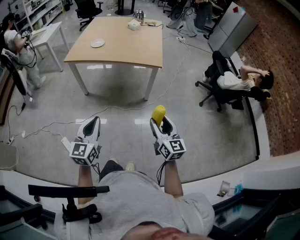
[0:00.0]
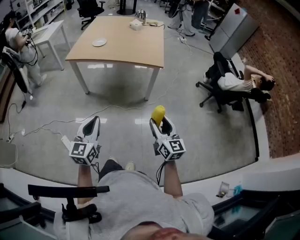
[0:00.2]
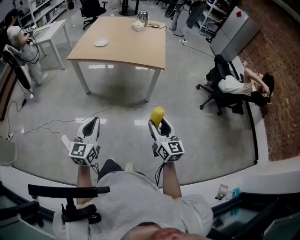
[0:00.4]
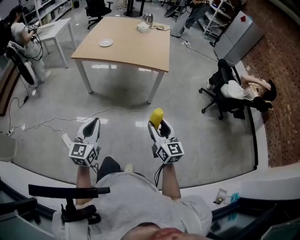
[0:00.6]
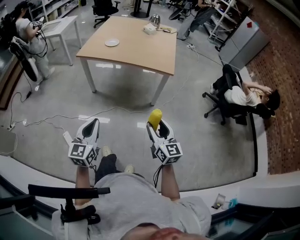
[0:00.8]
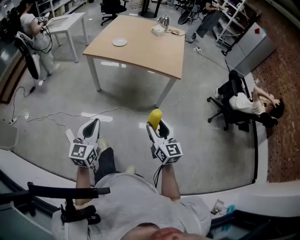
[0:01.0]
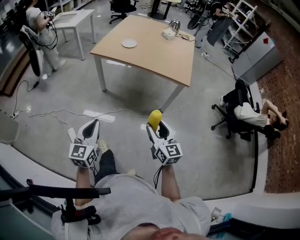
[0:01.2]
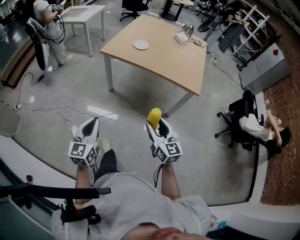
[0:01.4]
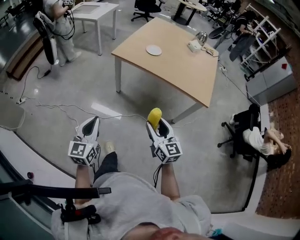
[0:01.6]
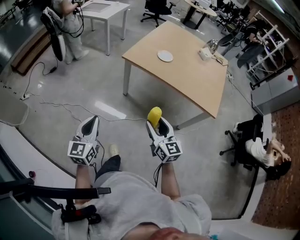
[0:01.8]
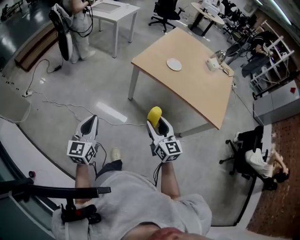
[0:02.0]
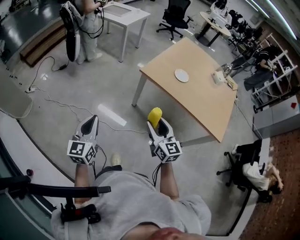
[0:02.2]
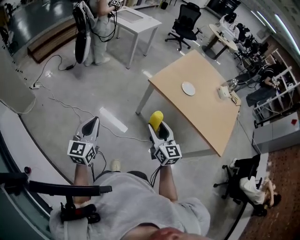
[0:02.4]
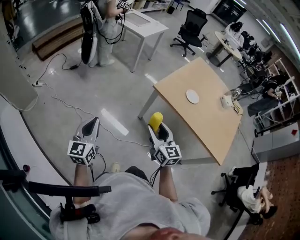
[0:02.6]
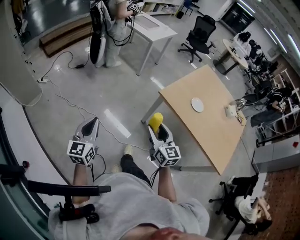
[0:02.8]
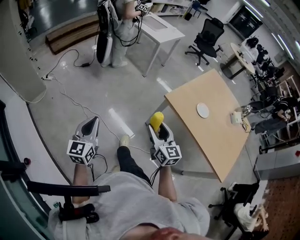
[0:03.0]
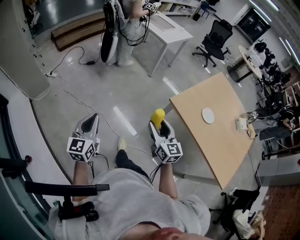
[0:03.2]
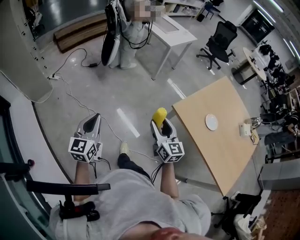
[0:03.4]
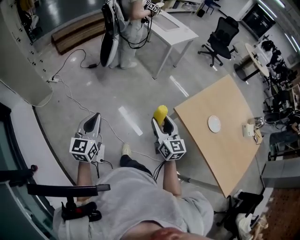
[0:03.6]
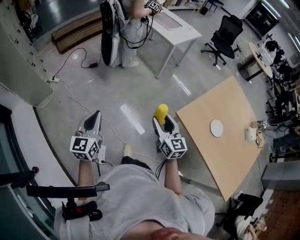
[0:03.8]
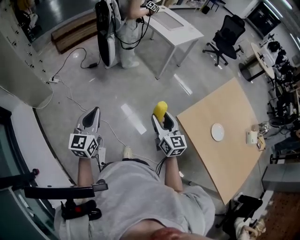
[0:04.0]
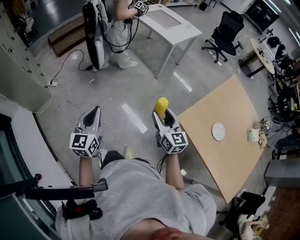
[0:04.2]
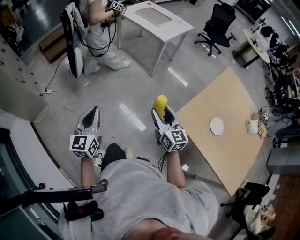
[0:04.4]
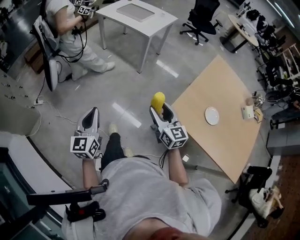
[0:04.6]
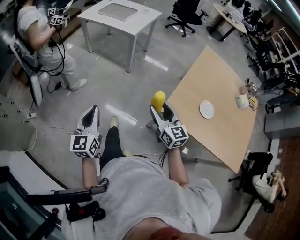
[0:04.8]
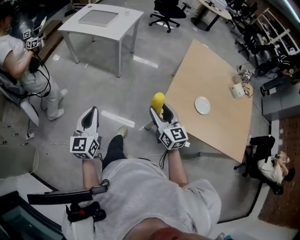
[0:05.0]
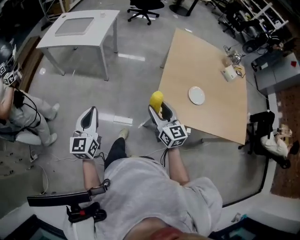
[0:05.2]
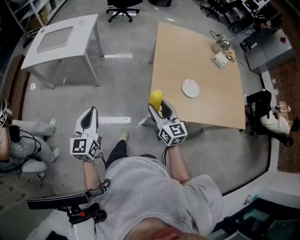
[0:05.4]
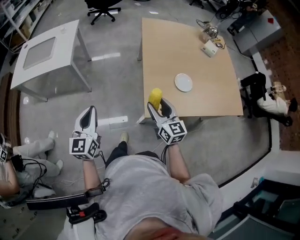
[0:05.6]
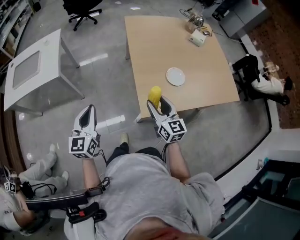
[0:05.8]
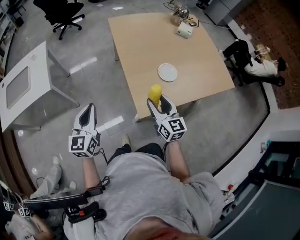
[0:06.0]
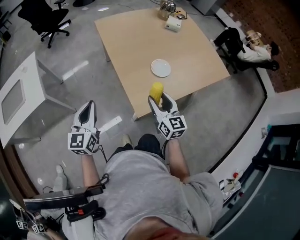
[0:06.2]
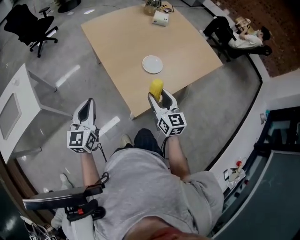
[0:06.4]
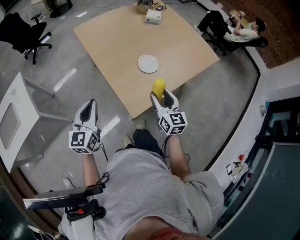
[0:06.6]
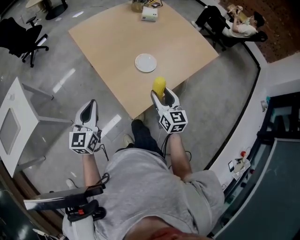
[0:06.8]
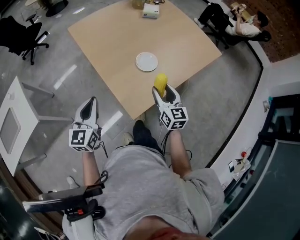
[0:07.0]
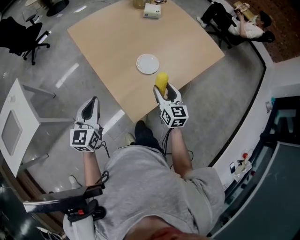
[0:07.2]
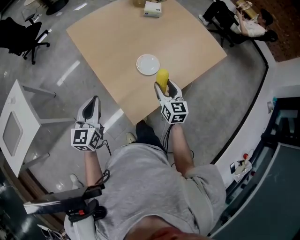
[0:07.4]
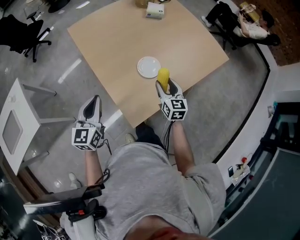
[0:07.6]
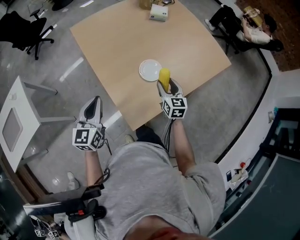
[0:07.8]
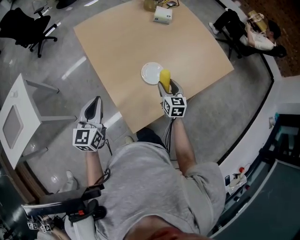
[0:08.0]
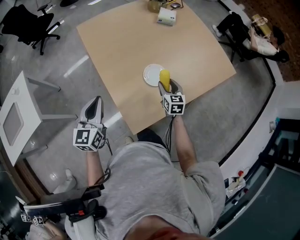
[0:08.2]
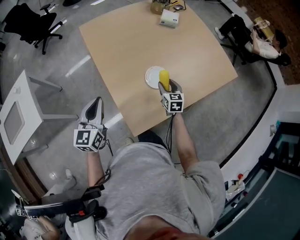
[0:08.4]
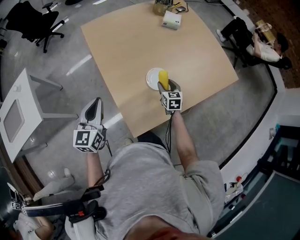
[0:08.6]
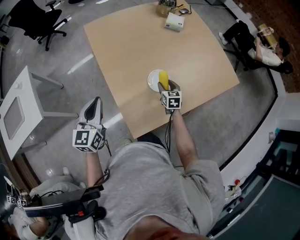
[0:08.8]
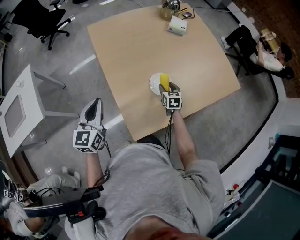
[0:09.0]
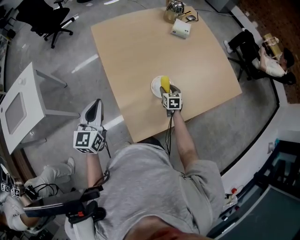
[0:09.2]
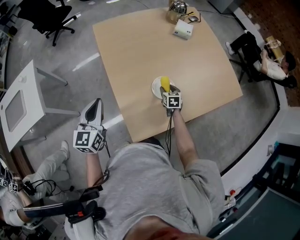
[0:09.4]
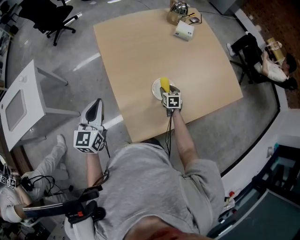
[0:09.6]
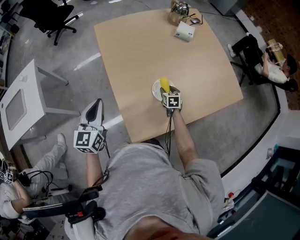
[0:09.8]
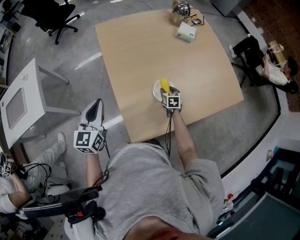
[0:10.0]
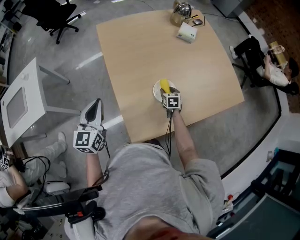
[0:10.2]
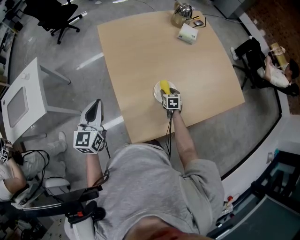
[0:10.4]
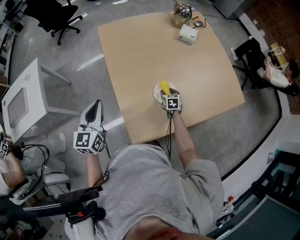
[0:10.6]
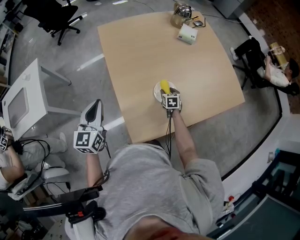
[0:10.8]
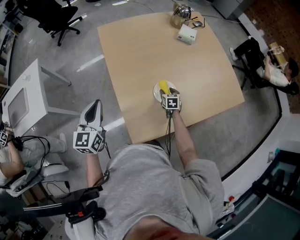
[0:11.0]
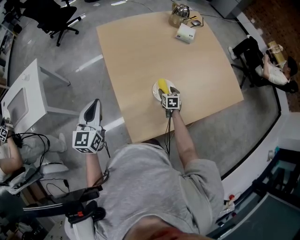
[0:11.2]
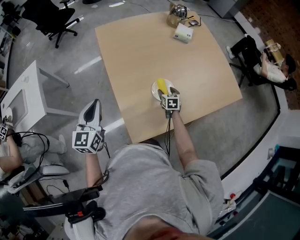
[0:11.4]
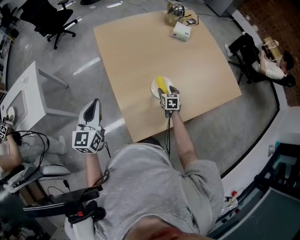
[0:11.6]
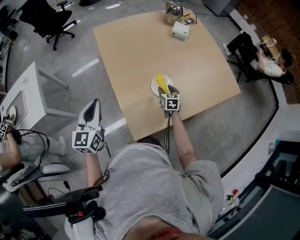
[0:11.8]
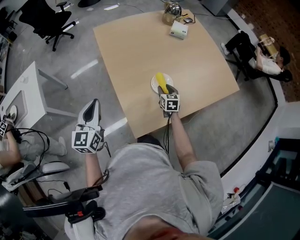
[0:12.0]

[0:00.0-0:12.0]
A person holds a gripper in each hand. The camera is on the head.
0:00.0 to 0:01.6: Both grippers move to the left and forward, some 30 cm. The right gripper rotates approximately 20 degrees. Meanwhile the left gripper swivels some 20 degrees.
0:01.6 to 0:03.0: The right gripper travels forward and to the left by some 40 cm, and swivels approximately 20 degrees. Meanwhile the left gripper shifts about 35 cm to the left and forward, and rotates roughly 30 degrees.
0:03.0 to 0:04.4: Both grippers travel together forward, approximately 30 cm.
0:04.4 to 0:06.0: The left gripper shifts by roughly 50 cm, and turns by roughly 70 degrees, while the right gripper shifts by roughly 30 cm, and turns by about 60 degrees.
0:06.0 to 0:07.6: The left gripper shifts about 25 cm forward and to the right. The right gripper travels forward, to the right and downward by some 25 cm, and rotates about 30 degrees.
0:07.6 to 0:09.0: The right gripper travels downward and forward by some 20 cm, and turns by approximately 20 degrees.
0:09.0 to 0:10.4: The right gripper travels downward by some 5 cm.
0:10.4 to 0:12.0: The right gripper shifts about 10 cm upward and backward. The left gripper moves backward, some 5 cm.

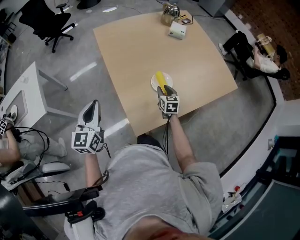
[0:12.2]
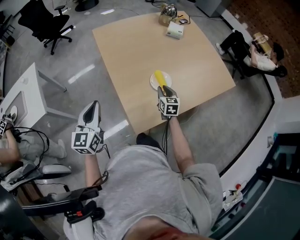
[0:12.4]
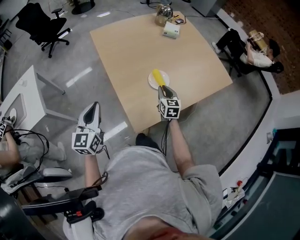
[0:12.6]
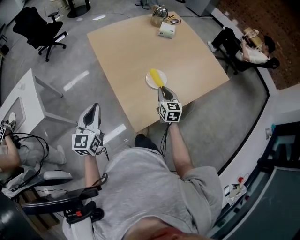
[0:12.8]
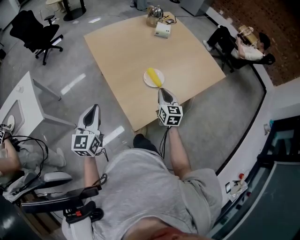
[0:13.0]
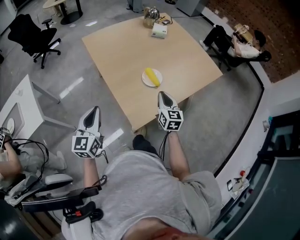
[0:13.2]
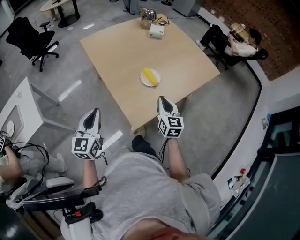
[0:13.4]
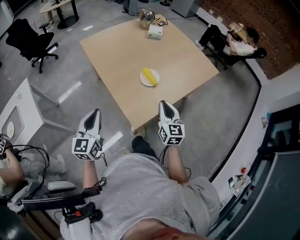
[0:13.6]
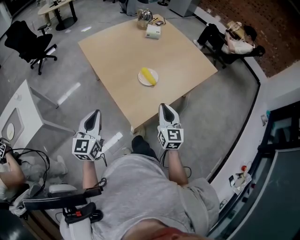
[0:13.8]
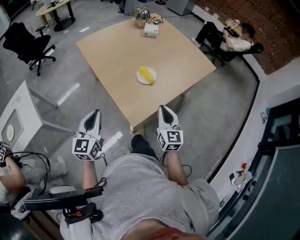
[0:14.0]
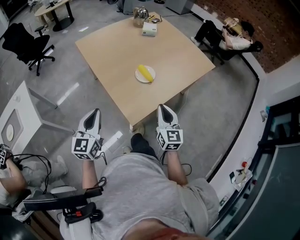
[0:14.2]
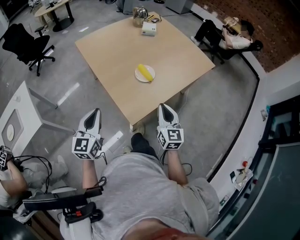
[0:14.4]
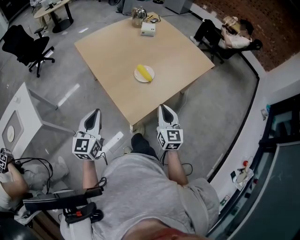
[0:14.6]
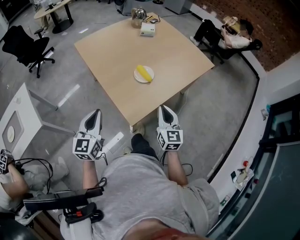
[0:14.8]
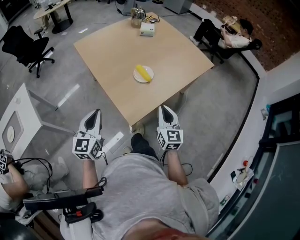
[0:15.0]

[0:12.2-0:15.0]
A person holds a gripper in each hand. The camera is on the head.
0:12.2 to 0:13.6: The left gripper heads backward, covering approximately 10 cm, while the right gripper is displaced backward and upward by about 30 cm, rotates some 30 degrees, and closes.
0:13.6 to 0:15.0: There are only small adjustments of the grippers.

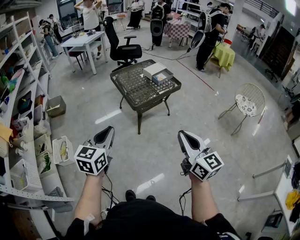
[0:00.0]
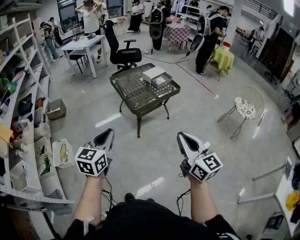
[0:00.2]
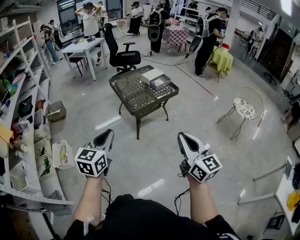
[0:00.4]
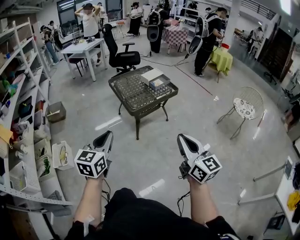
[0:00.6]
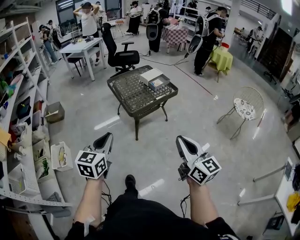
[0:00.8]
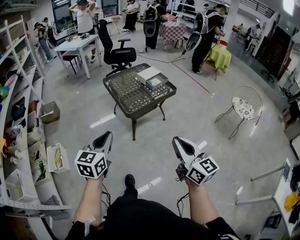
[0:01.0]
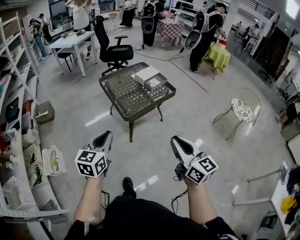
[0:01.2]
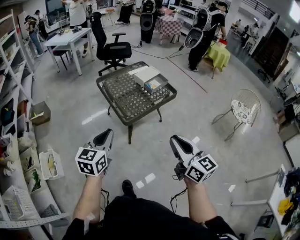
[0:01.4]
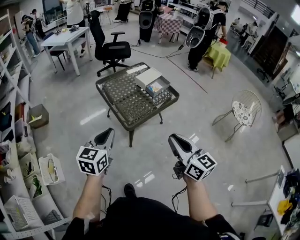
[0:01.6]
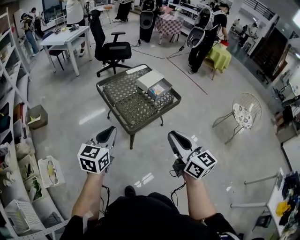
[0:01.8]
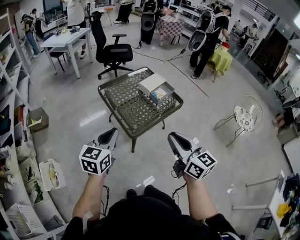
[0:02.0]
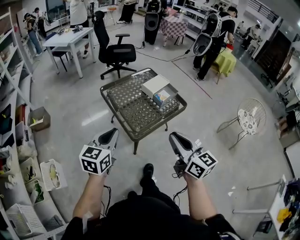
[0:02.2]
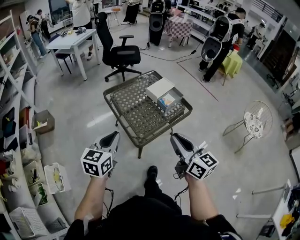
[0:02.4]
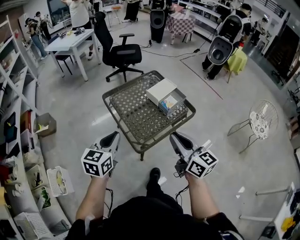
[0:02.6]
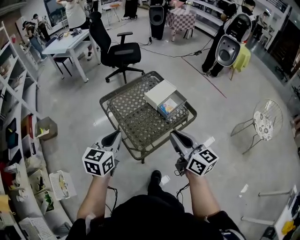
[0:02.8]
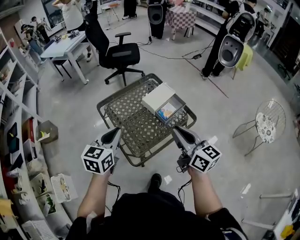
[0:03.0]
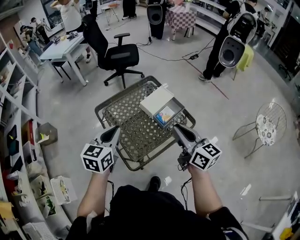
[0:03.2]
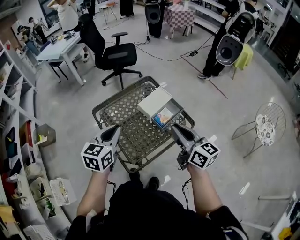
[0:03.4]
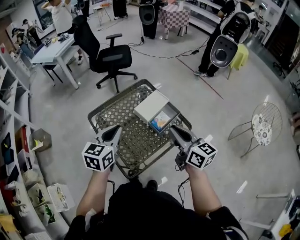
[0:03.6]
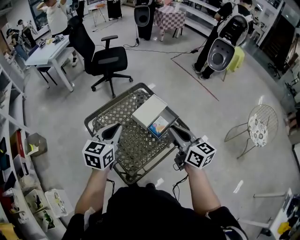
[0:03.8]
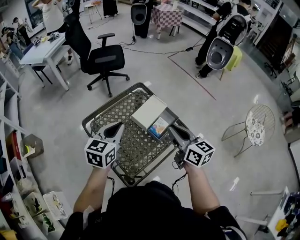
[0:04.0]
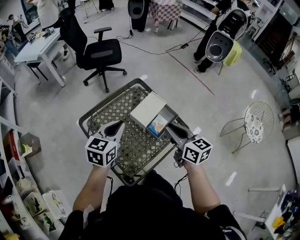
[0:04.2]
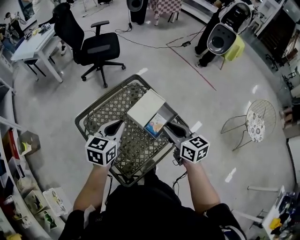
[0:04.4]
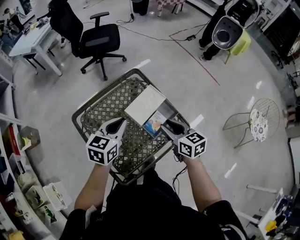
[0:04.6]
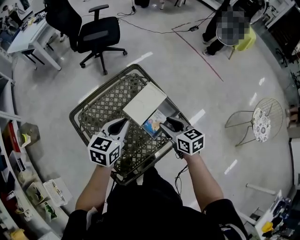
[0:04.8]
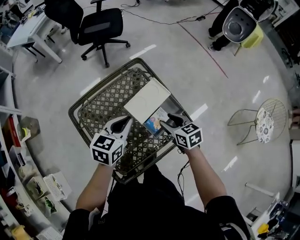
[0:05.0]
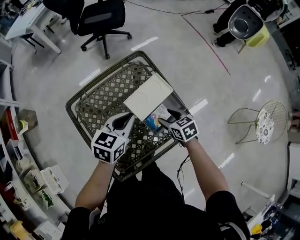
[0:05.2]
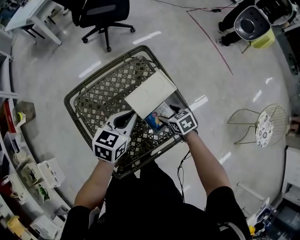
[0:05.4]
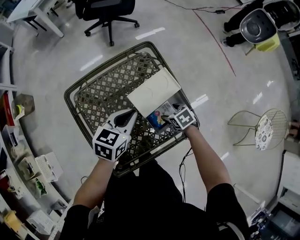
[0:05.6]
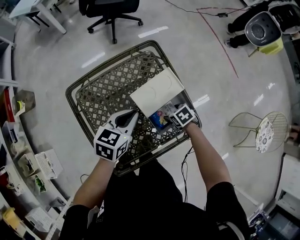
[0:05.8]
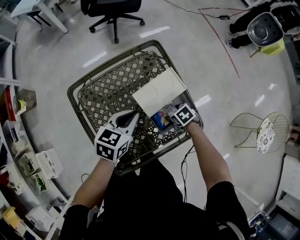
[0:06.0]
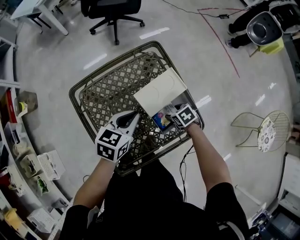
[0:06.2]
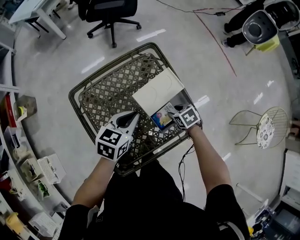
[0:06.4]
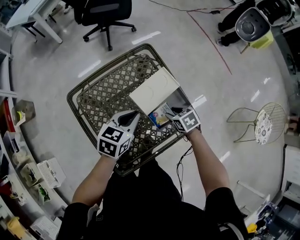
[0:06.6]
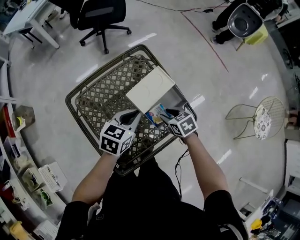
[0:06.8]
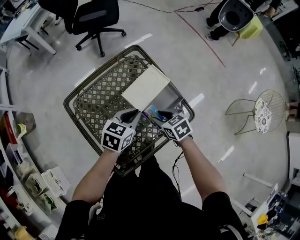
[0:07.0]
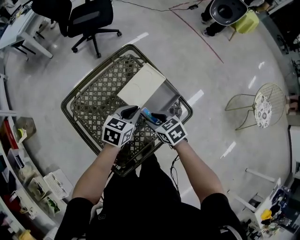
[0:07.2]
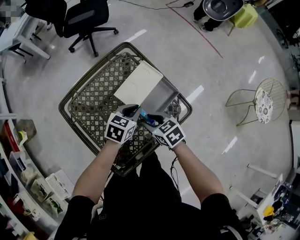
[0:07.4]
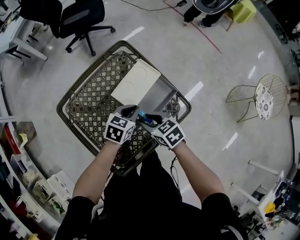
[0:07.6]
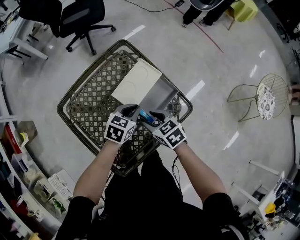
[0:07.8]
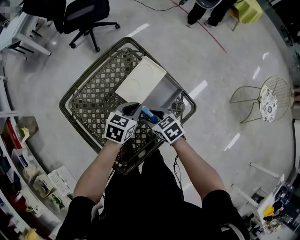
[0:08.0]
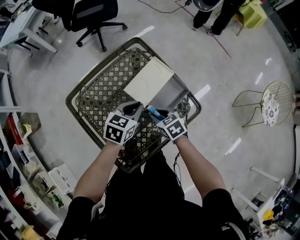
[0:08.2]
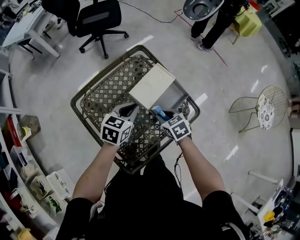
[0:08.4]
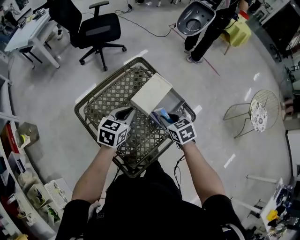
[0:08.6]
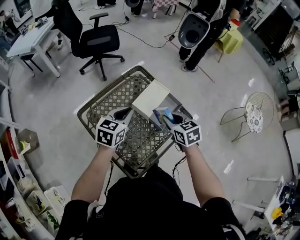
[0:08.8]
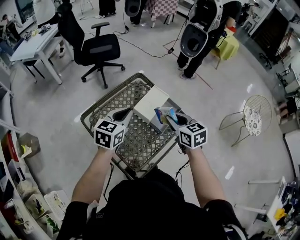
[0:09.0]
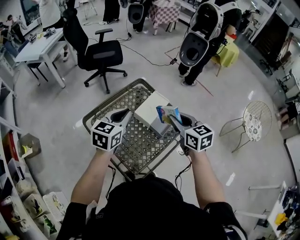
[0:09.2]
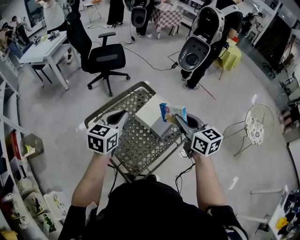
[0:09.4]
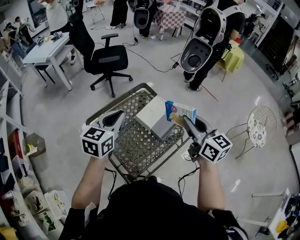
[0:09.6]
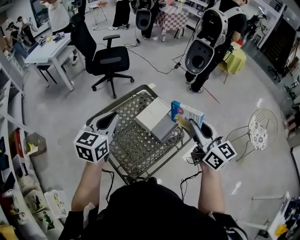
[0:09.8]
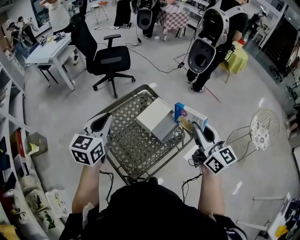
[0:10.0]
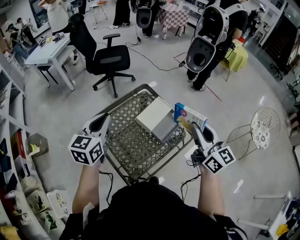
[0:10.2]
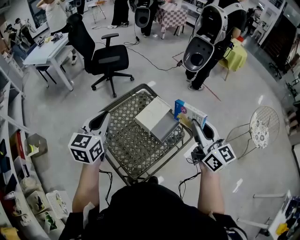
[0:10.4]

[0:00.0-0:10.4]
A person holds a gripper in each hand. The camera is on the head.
0:00.0 to 0:01.4: The two grippers go about 20 cm forward.
0:01.4 to 0:03.0: The grippers both shift forward by roughly 35 cm.
0:03.0 to 0:04.4: The right gripper shifts about 20 cm forward and downward, and swivels some 20 degrees, while the left gripper heads forward, covering some 20 cm.
0:04.4 to 0:06.0: The left gripper moves downward, about 15 cm, while the right gripper heads downward, covering approximately 30 cm, angles its fingers downward, by about 50 degrees, and opens its fingers.
0:06.0 to 0:07.4: The left gripper moves to the right and downward, roughly 10 cm; the right gripper moves upward, to the left and backward, about 15 cm, rotates some 30 degrees, and closes its fingers.
0:07.4 to 0:09.0: The left gripper is displaced upward and to the left by roughly 25 cm, and swivels approximately 20 degrees. Meanwhile the right gripper shifts roughly 20 cm upward, and changes its angle by roughly 30 degrees.
0:09.0 to 0:10.4: The right gripper travels upward and to the right by some 20 cm, and angles its fingers upward, by roughly 40 degrees, while the left gripper goes some 10 cm upward and to the left.
